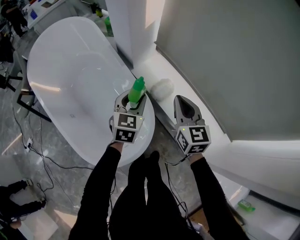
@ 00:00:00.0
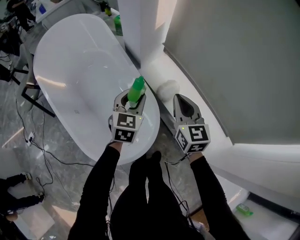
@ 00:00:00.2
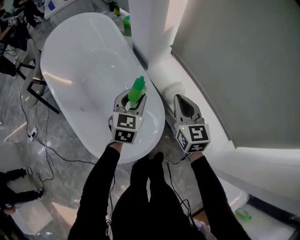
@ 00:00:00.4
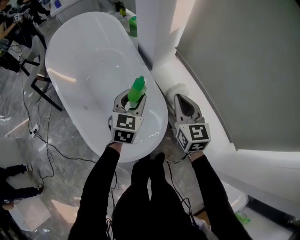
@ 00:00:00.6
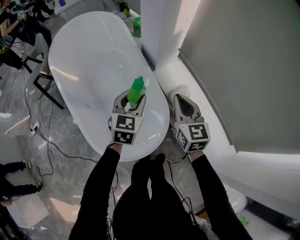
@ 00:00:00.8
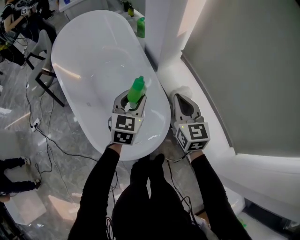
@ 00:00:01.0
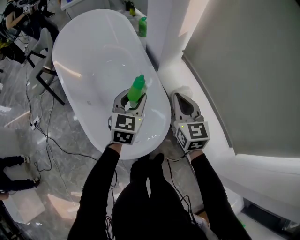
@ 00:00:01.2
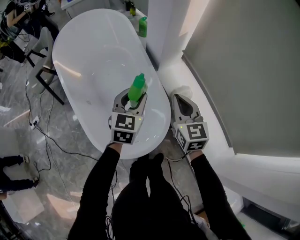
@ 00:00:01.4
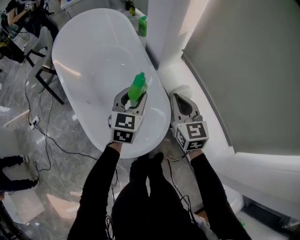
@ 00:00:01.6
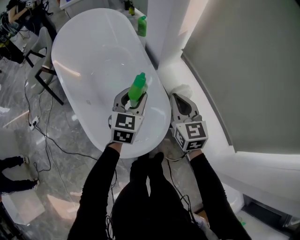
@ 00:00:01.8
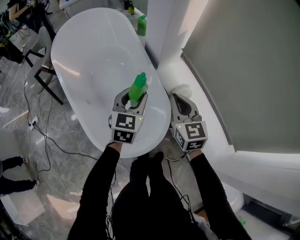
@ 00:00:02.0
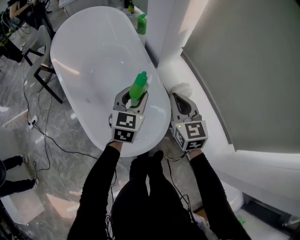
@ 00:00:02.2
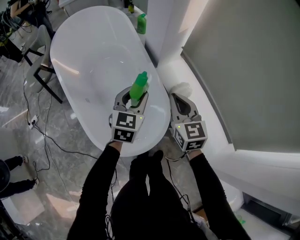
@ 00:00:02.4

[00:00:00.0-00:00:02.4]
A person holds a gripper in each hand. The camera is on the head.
00:00:00.0 to 00:00:01.2: The left gripper heads to the left and upward, covering approximately 10 cm, while the right gripper heads to the left, covering about 10 cm.
00:00:01.2 to 00:00:02.4: The grippers move only a little.

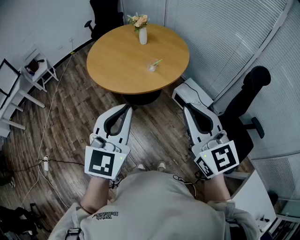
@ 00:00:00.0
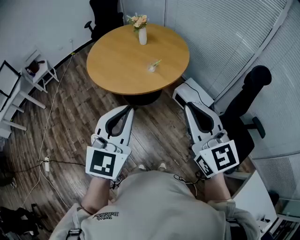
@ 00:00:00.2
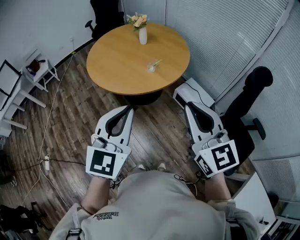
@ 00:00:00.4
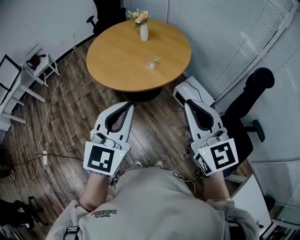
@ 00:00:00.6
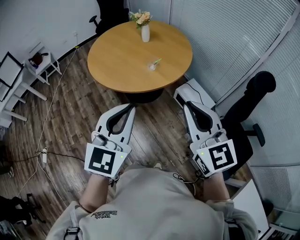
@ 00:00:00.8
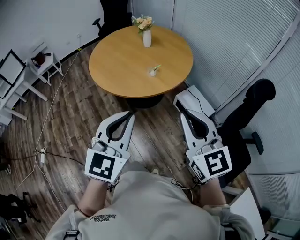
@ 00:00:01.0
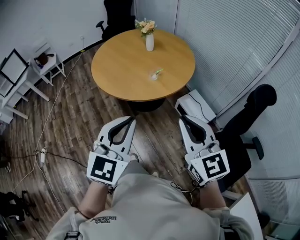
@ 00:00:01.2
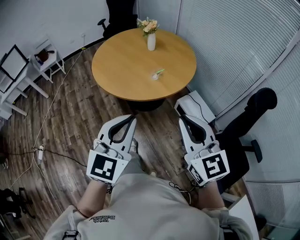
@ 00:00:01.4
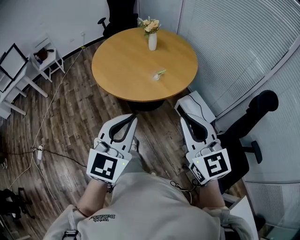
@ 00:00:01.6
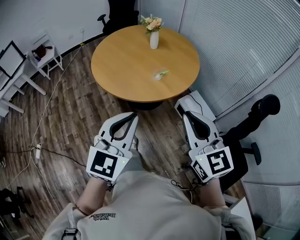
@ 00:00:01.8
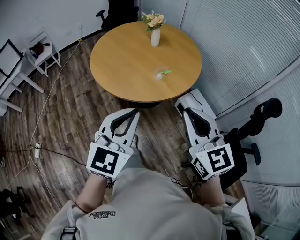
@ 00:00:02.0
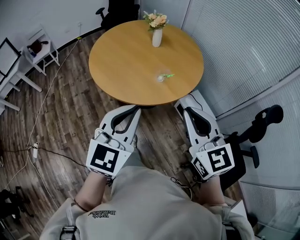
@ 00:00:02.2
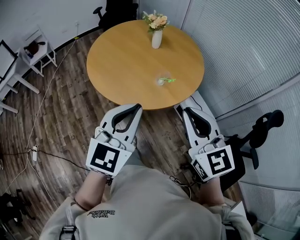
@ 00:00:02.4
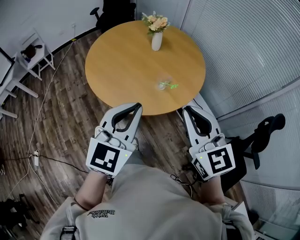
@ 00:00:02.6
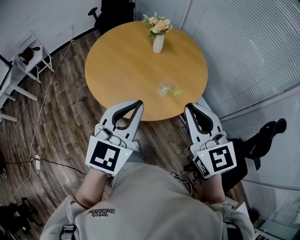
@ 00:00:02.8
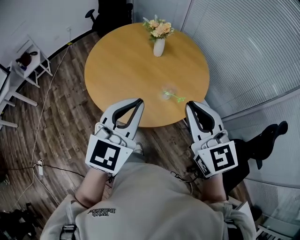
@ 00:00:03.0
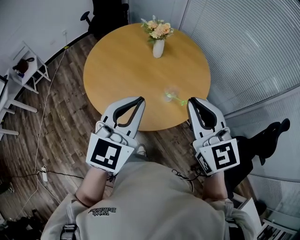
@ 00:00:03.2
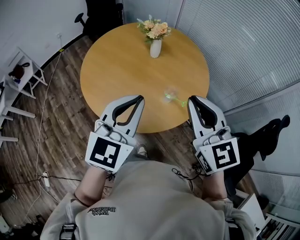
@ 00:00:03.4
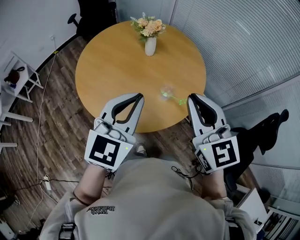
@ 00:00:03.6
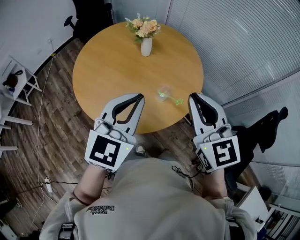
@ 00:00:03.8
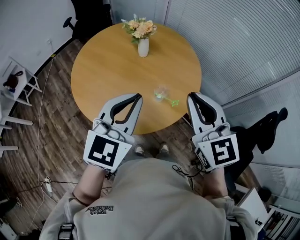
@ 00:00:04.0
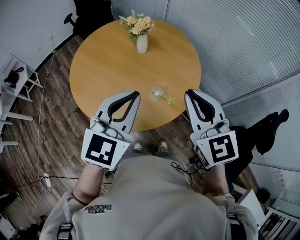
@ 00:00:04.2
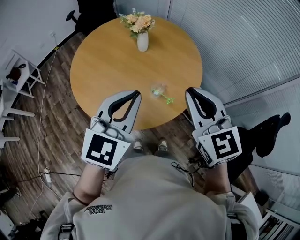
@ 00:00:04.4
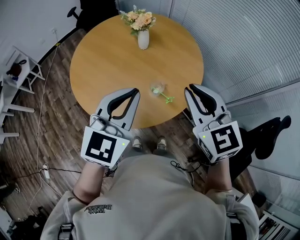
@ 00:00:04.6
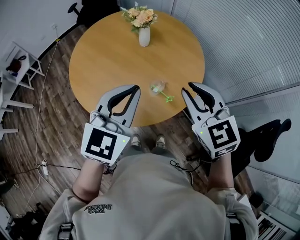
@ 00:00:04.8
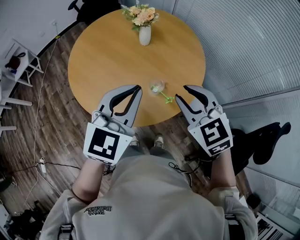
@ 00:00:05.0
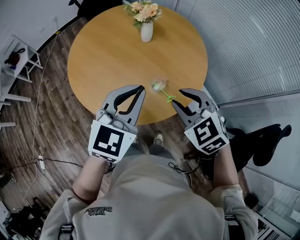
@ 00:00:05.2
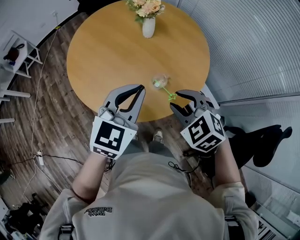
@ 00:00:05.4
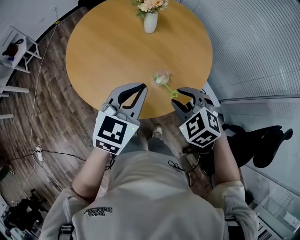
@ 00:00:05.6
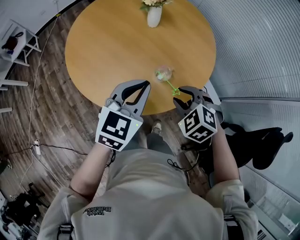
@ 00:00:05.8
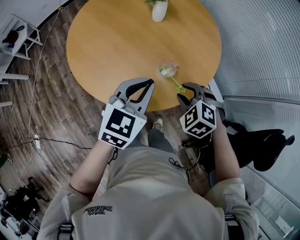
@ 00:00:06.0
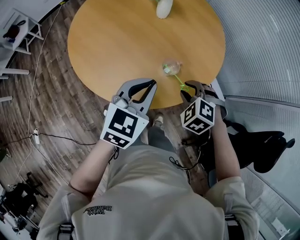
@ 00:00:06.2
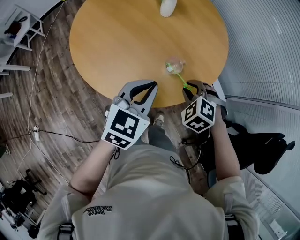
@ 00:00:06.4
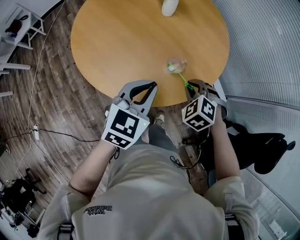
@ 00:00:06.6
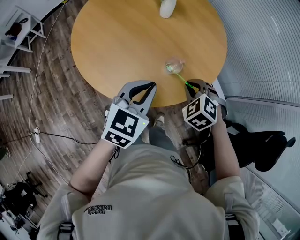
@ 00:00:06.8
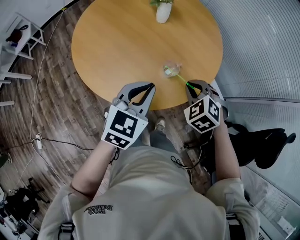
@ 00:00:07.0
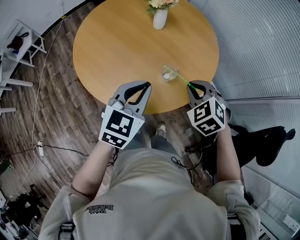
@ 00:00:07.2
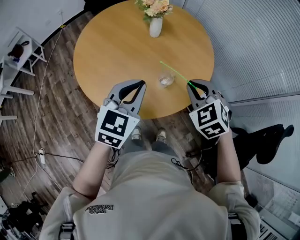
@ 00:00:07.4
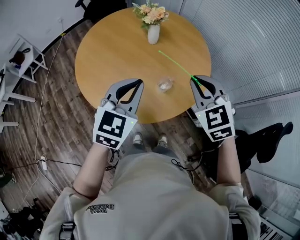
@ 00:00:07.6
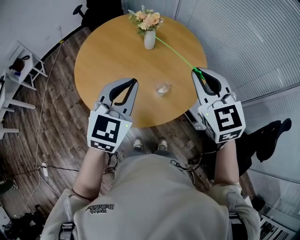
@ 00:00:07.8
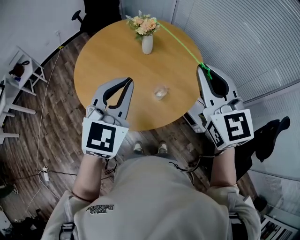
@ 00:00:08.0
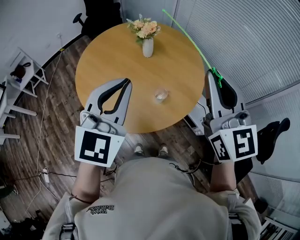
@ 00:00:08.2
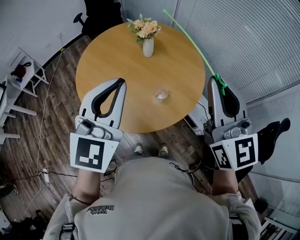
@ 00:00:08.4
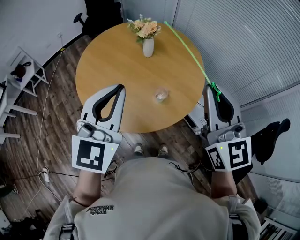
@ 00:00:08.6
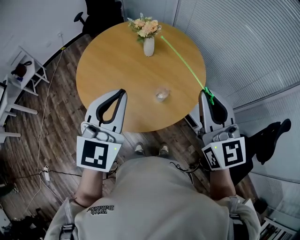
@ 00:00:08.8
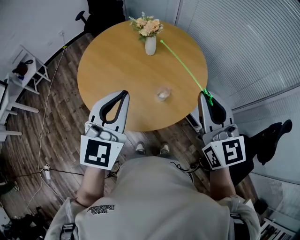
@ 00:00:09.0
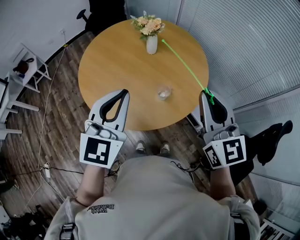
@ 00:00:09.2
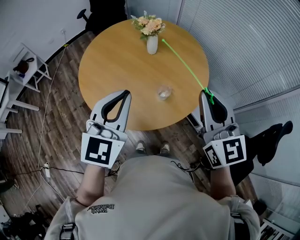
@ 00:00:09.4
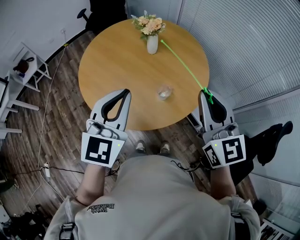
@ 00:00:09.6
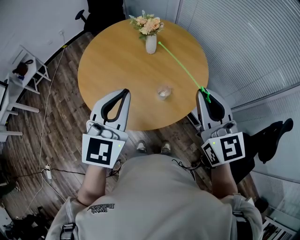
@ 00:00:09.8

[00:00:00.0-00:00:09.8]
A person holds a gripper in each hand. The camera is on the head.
00:00:00.0 to 00:00:01.4: The left gripper shifts approximately 5 cm to the right. Meanwhile the right gripper shifts by some 5 cm.
00:00:01.4 to 00:00:02.8: The right gripper travels forward and to the left by roughly 25 cm, while the left gripper goes about 25 cm forward.
00:00:02.8 to 00:00:04.2: Both grippers move forward, approximately 10 cm.
00:00:04.2 to 00:00:05.6: The left gripper heads downward, covering roughly 10 cm, while the right gripper goes roughly 20 cm downward, tips its fingers downward by roughly 40 degrees, and opens.
00:00:05.6 to 00:00:07.0: The left gripper ends up some 5 cm from where it was, while the right gripper closes up.
00:00:07.0 to 00:00:08.4: Both grippers move upward, about 30 cm. The right gripper points its fingers about 60 degrees further upward; the left gripper changes its angle by approximately 30 degrees.
00:00:08.4 to 00:00:09.8: The two grippers go roughly 5 cm downward.

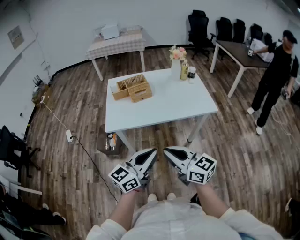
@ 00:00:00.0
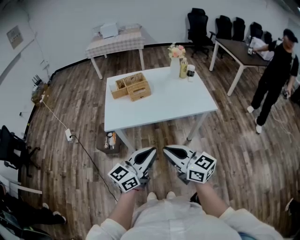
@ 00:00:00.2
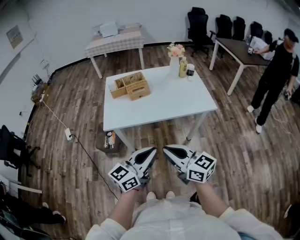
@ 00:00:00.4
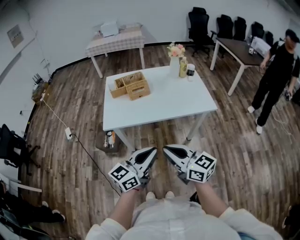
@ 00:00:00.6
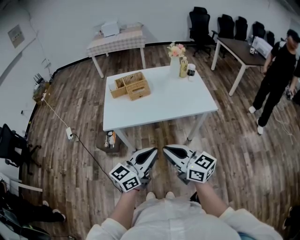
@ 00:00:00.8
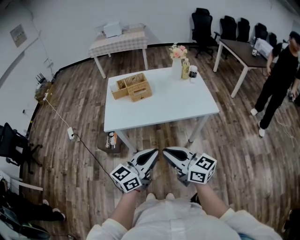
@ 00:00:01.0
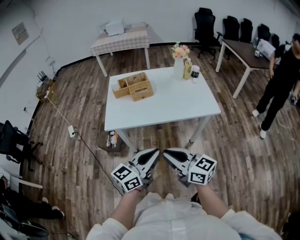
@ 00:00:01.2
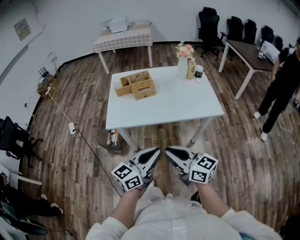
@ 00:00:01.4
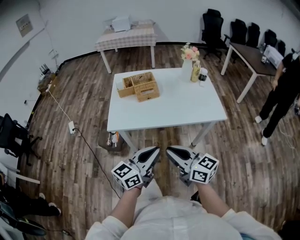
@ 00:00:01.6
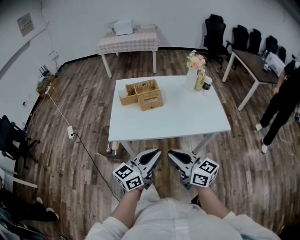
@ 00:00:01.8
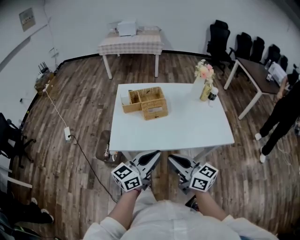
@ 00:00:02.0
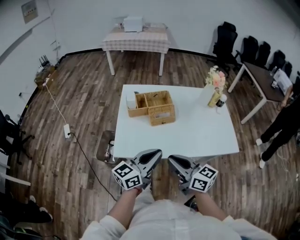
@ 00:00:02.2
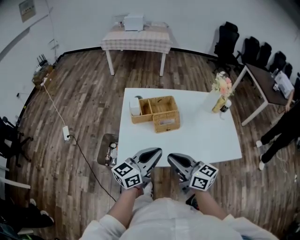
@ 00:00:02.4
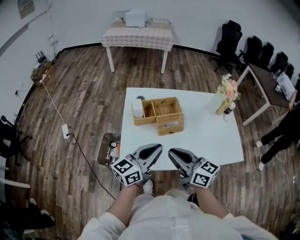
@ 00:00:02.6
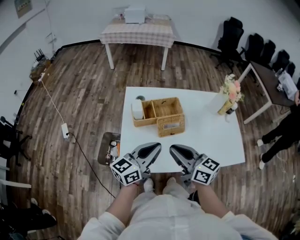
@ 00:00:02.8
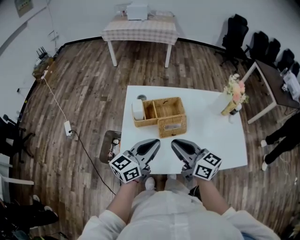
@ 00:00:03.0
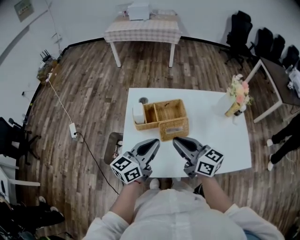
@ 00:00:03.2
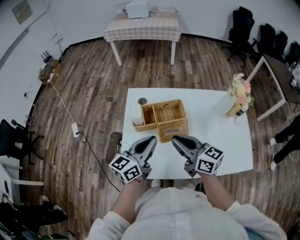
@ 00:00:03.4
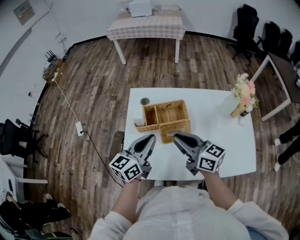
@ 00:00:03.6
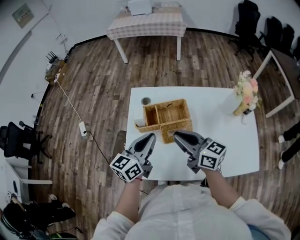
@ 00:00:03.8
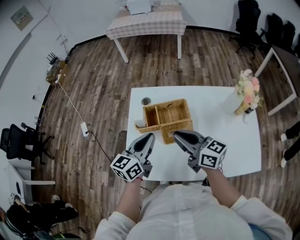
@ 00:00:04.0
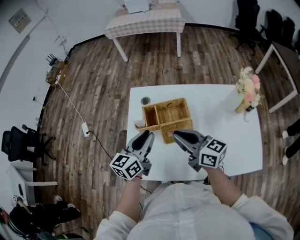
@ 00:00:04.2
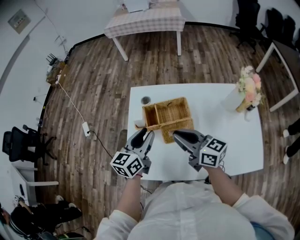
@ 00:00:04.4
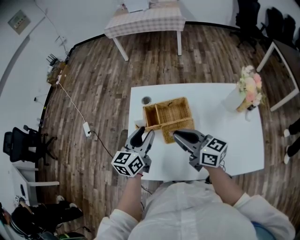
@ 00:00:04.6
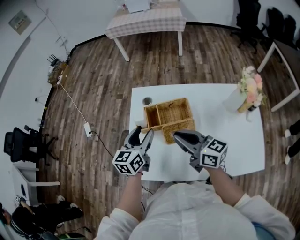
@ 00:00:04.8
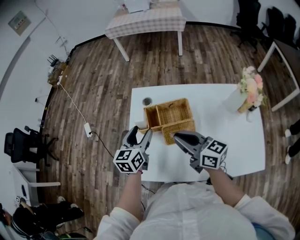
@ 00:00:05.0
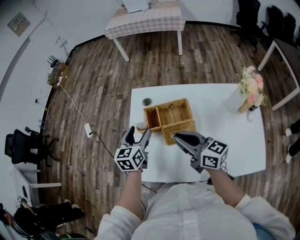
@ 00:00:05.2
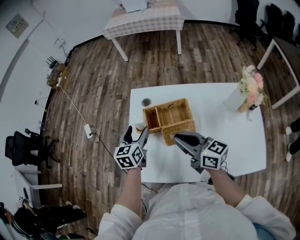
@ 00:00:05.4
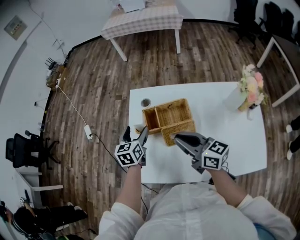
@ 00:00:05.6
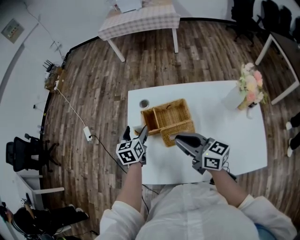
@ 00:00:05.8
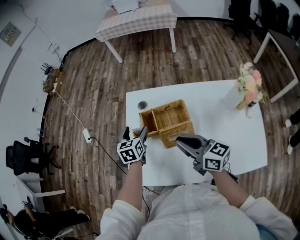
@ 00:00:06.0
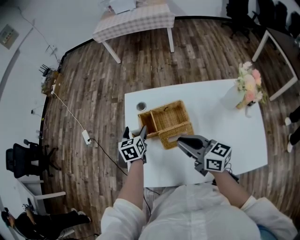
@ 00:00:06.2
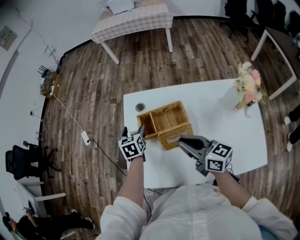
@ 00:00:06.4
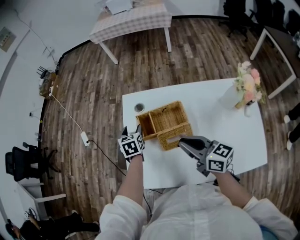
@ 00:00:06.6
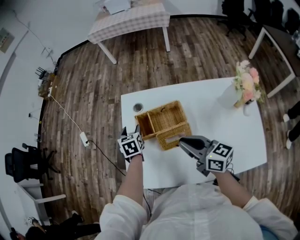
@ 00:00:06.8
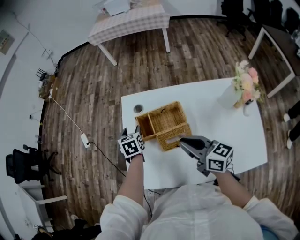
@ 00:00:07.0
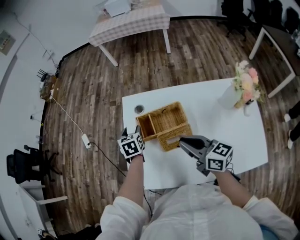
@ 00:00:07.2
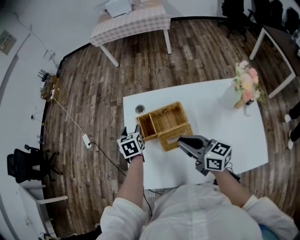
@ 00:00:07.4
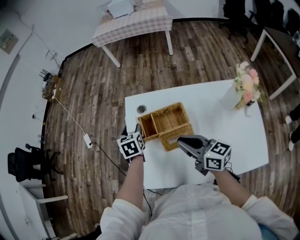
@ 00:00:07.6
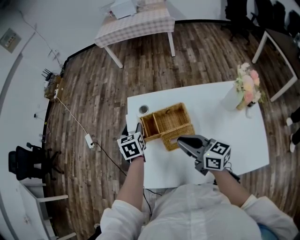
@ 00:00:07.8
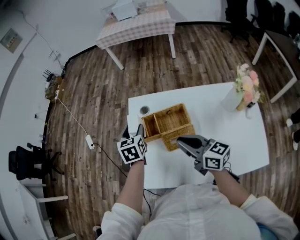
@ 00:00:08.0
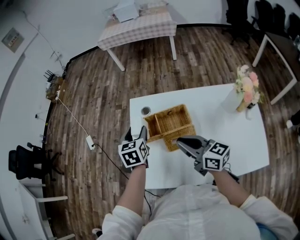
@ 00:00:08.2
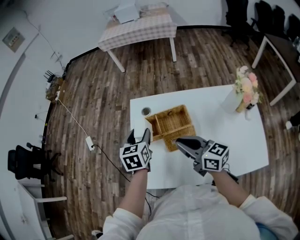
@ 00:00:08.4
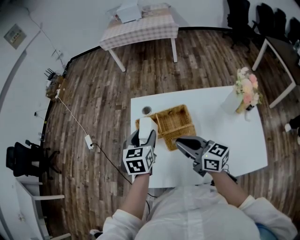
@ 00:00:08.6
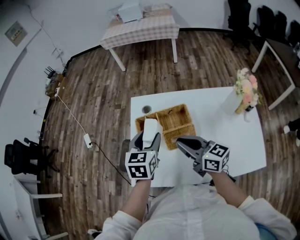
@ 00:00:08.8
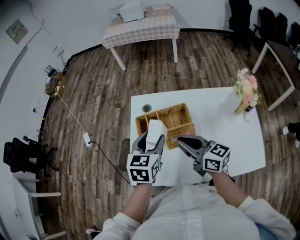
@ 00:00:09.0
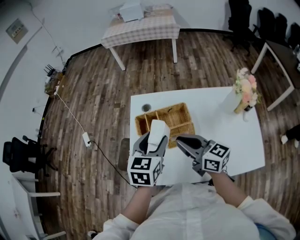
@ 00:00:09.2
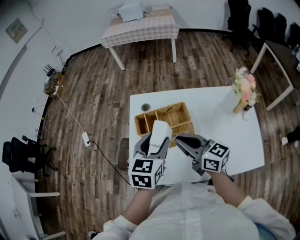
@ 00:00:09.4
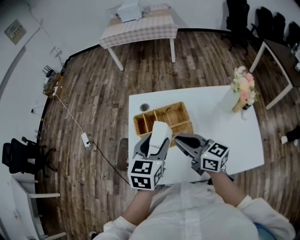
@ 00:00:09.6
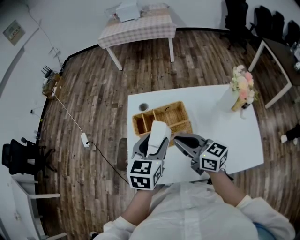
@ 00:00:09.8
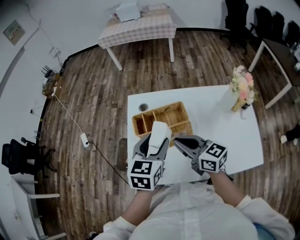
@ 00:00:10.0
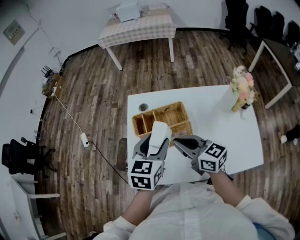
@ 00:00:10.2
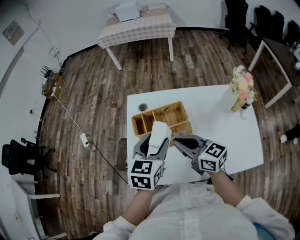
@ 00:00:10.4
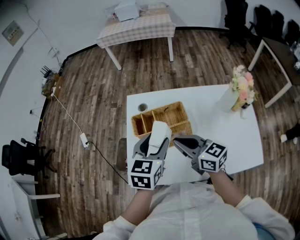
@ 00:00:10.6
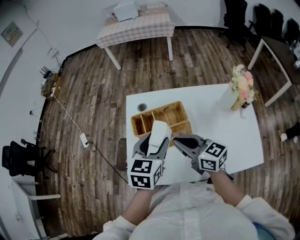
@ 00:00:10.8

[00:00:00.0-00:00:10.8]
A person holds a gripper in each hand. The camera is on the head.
00:00:00.0 to 00:00:01.6: The two grippers go roughly 5 cm forward.
00:00:01.6 to 00:00:03.0: The two grippers go approximately 35 cm forward.
00:00:03.0 to 00:00:04.6: Both grippers move forward, some 10 cm. The left gripper changes its angle by approximately 30 degrees, and opens.
00:00:04.6 to 00:00:06.2: The left gripper travels downward and forward by about 15 cm, turns by some 30 degrees, and opens its fingers.
00:00:06.2 to 00:00:07.8: The left gripper is displaced upward by roughly 5 cm, and closes its fingers.
00:00:07.8 to 00:00:09.2: The left gripper is displaced backward, upward and to the right by about 20 cm, and changes its angle by some 30 degrees.
00:00:09.2 to 00:00:10.8: The grippers move only a little.
